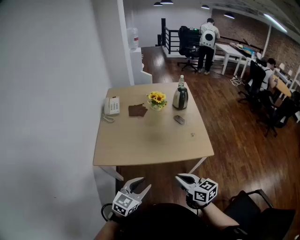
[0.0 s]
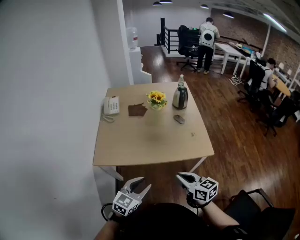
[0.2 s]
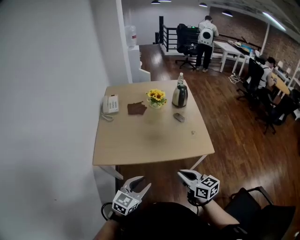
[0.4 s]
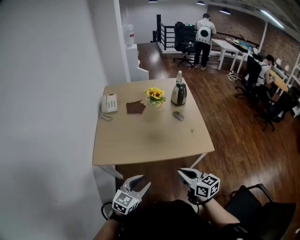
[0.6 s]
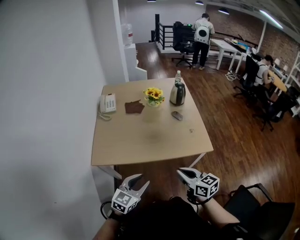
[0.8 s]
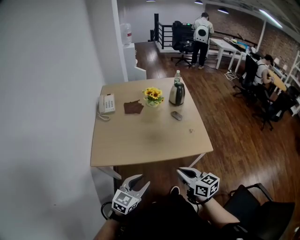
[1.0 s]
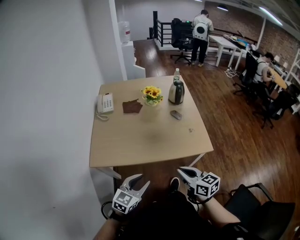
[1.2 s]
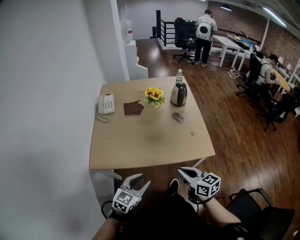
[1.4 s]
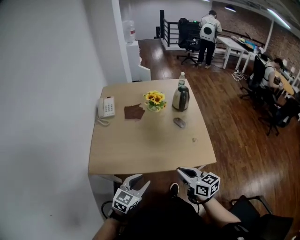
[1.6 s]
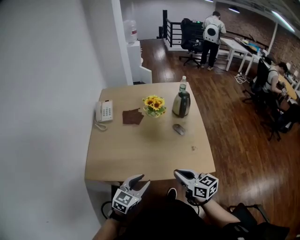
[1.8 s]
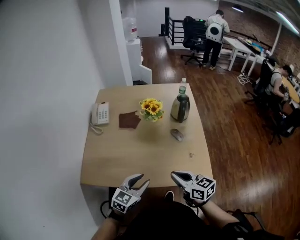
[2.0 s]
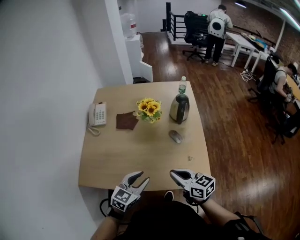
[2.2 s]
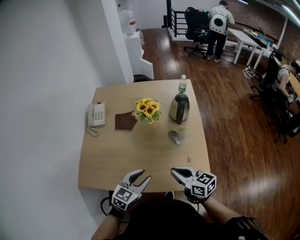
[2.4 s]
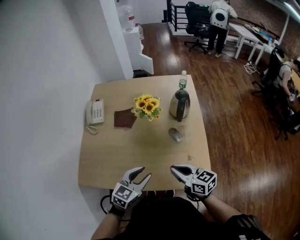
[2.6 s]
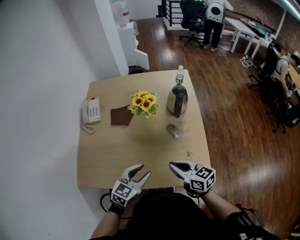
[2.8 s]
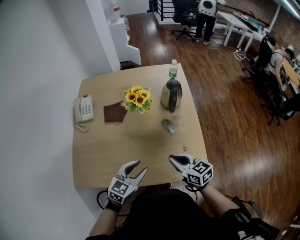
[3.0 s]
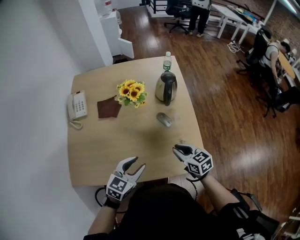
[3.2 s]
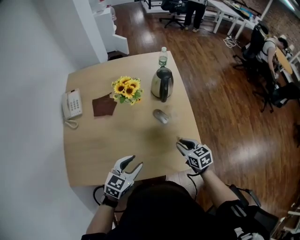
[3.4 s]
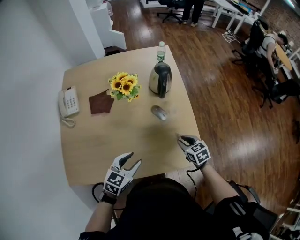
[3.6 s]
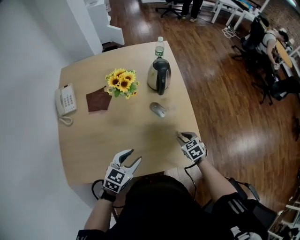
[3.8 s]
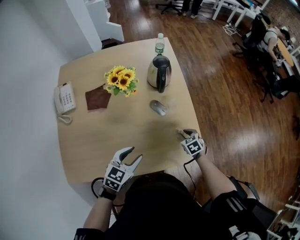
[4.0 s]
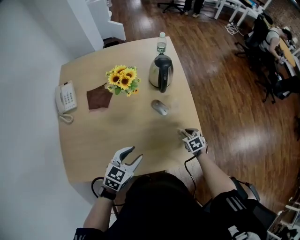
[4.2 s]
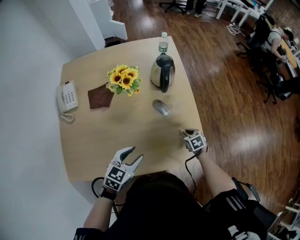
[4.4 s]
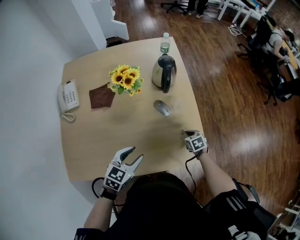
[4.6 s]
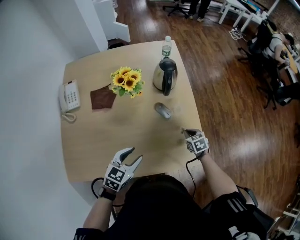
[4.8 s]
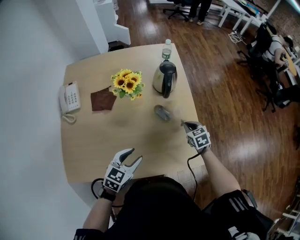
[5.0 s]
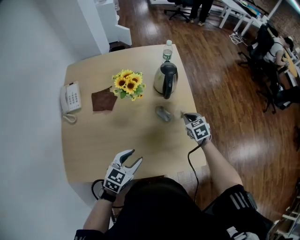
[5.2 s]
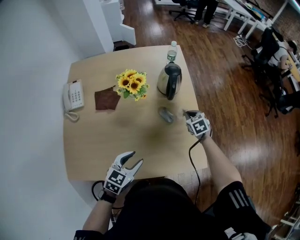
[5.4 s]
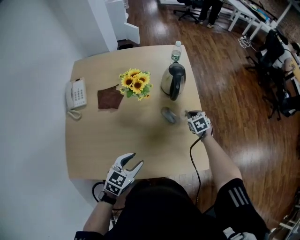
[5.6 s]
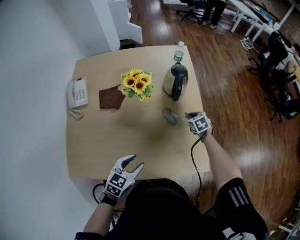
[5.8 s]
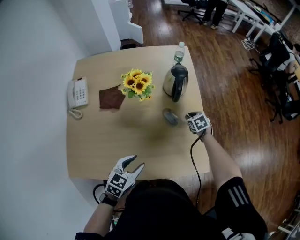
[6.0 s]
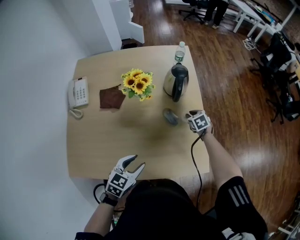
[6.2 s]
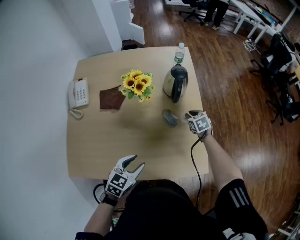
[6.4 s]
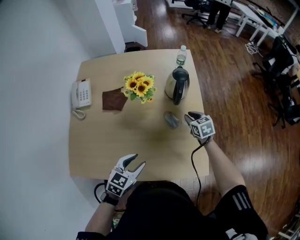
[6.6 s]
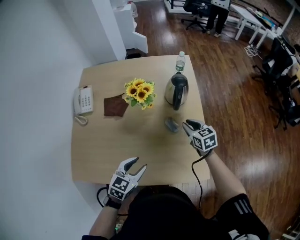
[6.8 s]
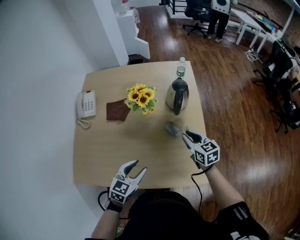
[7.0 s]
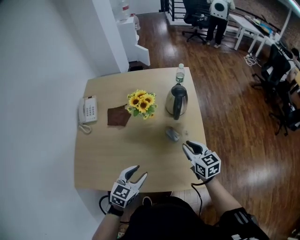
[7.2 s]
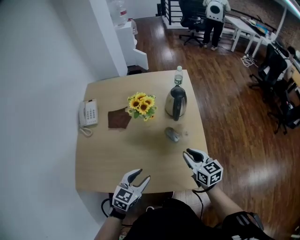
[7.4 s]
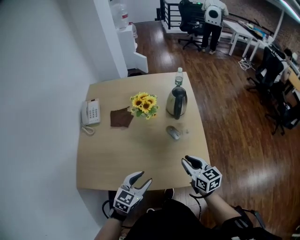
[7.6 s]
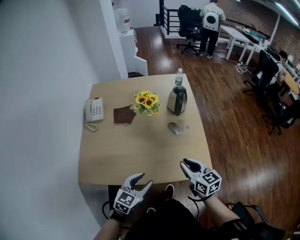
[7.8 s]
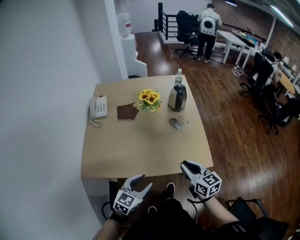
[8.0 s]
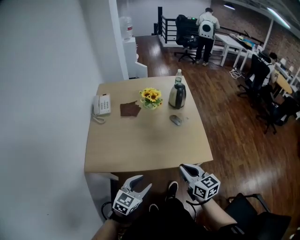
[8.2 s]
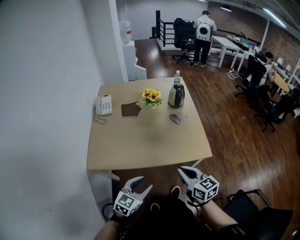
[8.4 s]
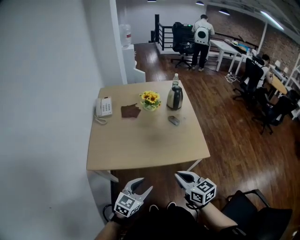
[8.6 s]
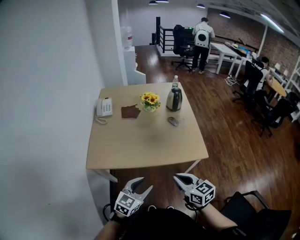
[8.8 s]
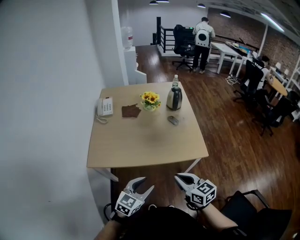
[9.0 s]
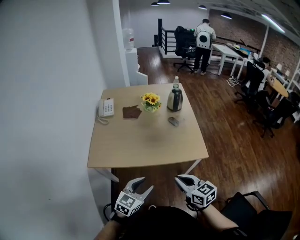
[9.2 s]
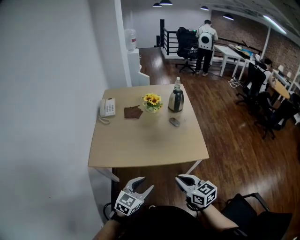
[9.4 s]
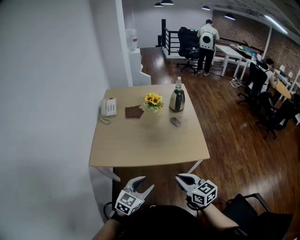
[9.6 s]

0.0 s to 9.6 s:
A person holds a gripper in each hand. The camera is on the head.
0.0 to 1.6 s: Both grippers travel together forward, about 10 cm.
1.6 to 3.2 s: The left gripper goes about 25 cm forward and to the right. The right gripper travels forward, to the right and downward by some 30 cm.
3.2 to 4.8 s: The left gripper goes about 5 cm downward; the right gripper is displaced downward, to the right and forward by some 20 cm, and swivels roughly 30 degrees.
4.8 to 6.4 s: The right gripper shifts approximately 15 cm forward, and opens up.
6.4 to 8.0 s: The right gripper shifts about 40 cm backward and upward, and tilts its fingers some 40 degrees upward. Meanwhile the left gripper is displaced backward by approximately 20 cm.
8.0 to 9.6 s: Both grippers move backward, some 15 cm.

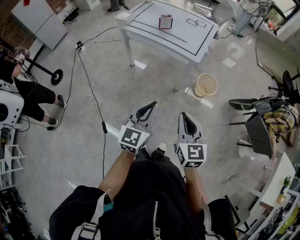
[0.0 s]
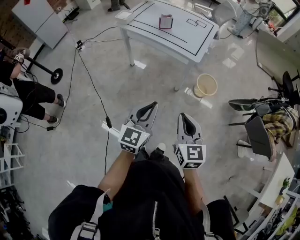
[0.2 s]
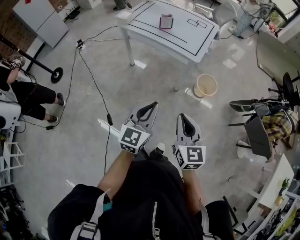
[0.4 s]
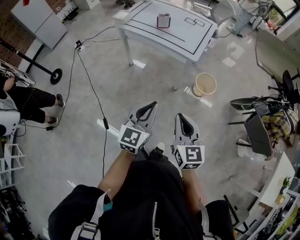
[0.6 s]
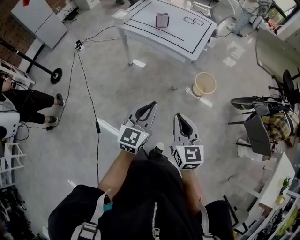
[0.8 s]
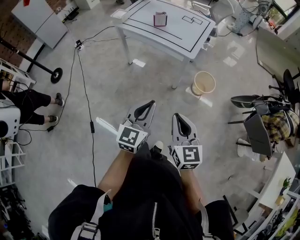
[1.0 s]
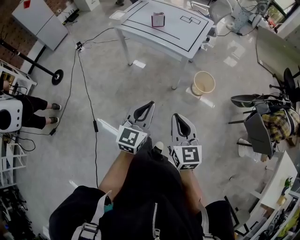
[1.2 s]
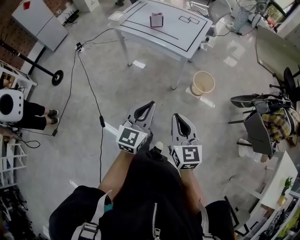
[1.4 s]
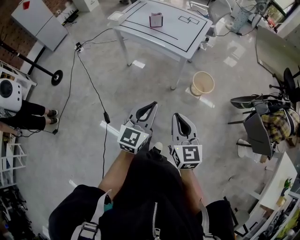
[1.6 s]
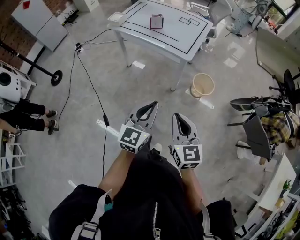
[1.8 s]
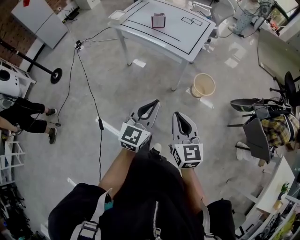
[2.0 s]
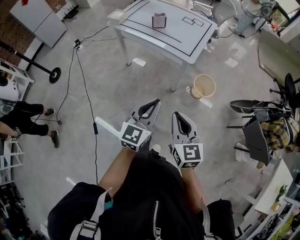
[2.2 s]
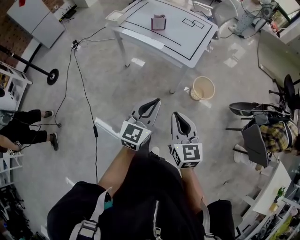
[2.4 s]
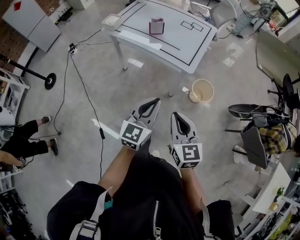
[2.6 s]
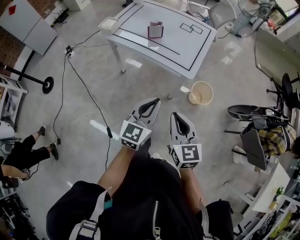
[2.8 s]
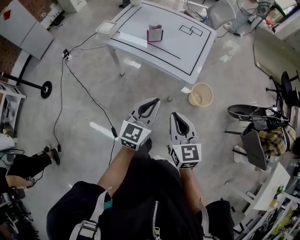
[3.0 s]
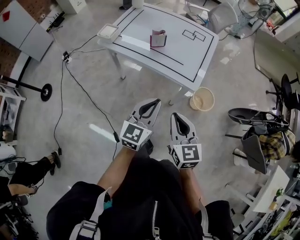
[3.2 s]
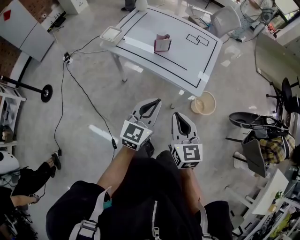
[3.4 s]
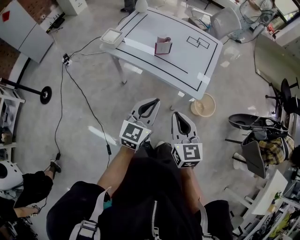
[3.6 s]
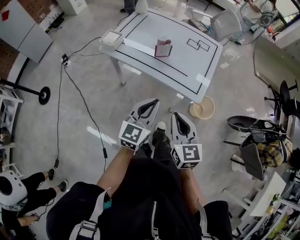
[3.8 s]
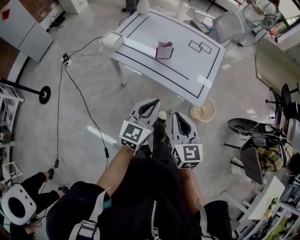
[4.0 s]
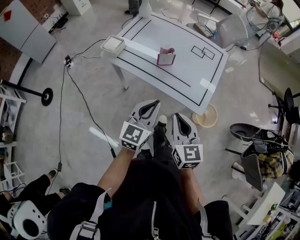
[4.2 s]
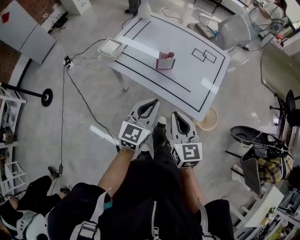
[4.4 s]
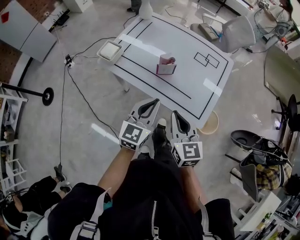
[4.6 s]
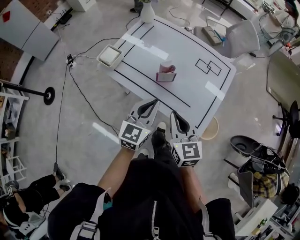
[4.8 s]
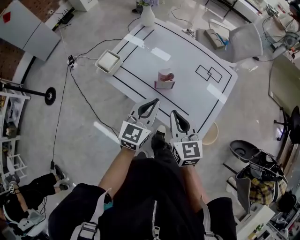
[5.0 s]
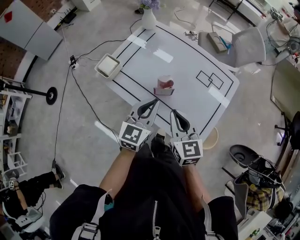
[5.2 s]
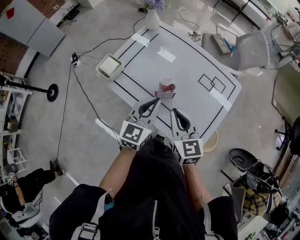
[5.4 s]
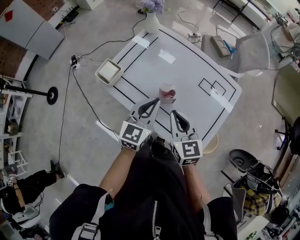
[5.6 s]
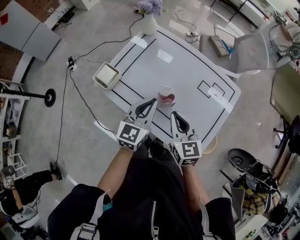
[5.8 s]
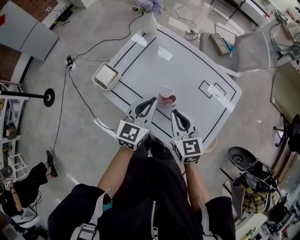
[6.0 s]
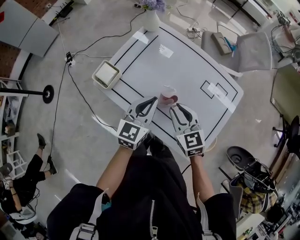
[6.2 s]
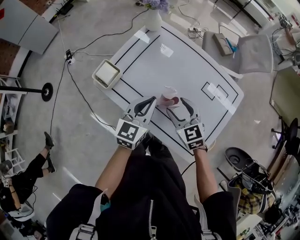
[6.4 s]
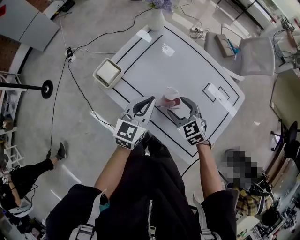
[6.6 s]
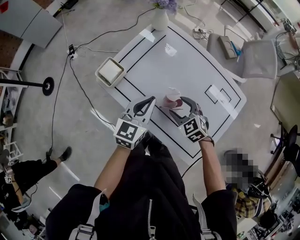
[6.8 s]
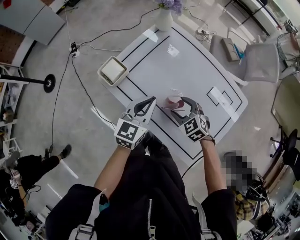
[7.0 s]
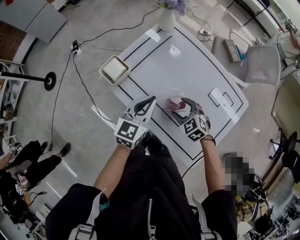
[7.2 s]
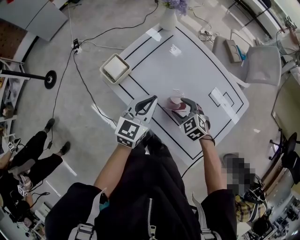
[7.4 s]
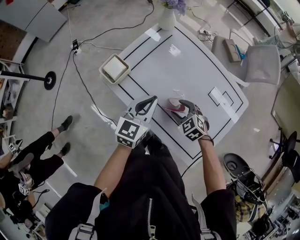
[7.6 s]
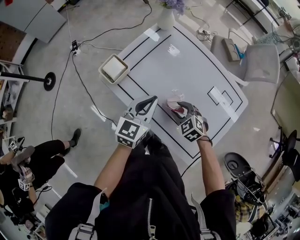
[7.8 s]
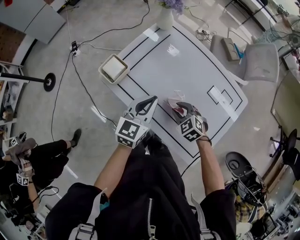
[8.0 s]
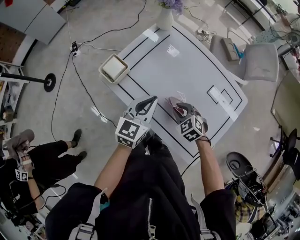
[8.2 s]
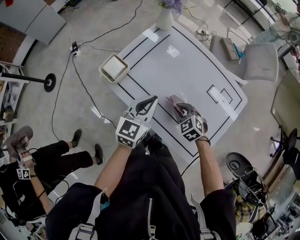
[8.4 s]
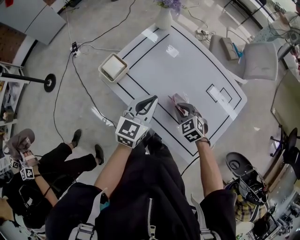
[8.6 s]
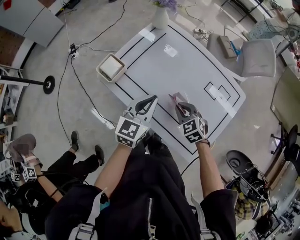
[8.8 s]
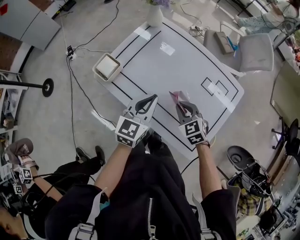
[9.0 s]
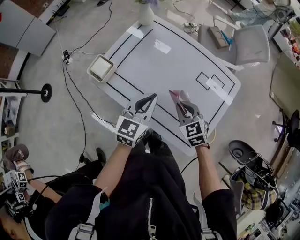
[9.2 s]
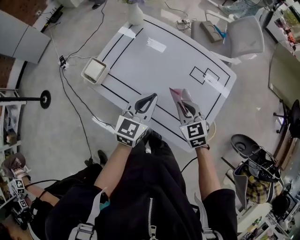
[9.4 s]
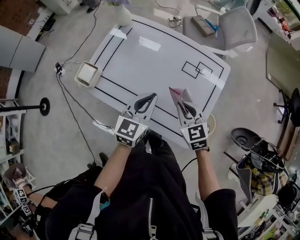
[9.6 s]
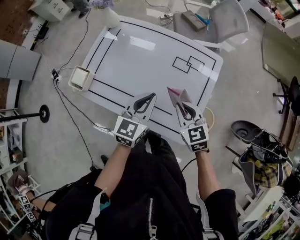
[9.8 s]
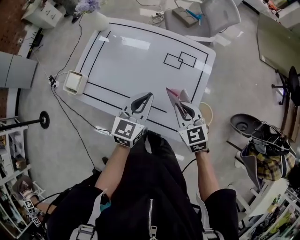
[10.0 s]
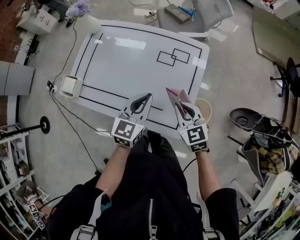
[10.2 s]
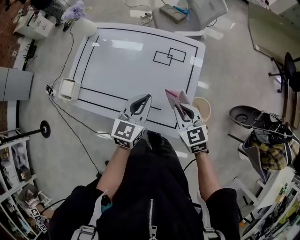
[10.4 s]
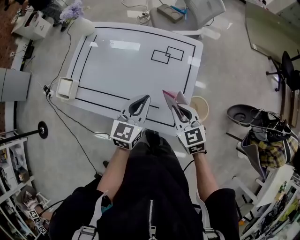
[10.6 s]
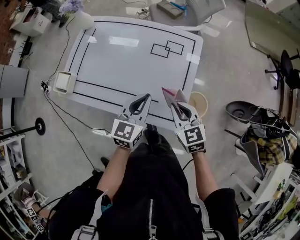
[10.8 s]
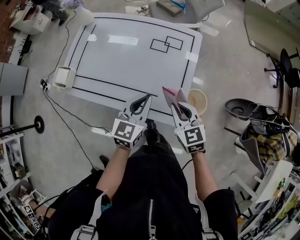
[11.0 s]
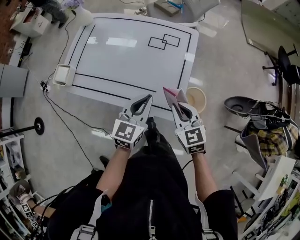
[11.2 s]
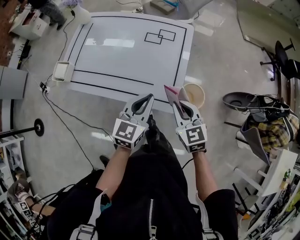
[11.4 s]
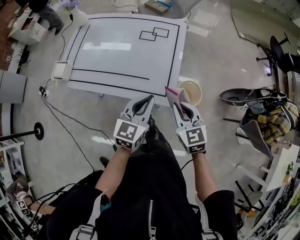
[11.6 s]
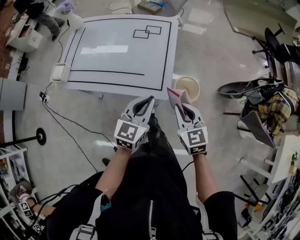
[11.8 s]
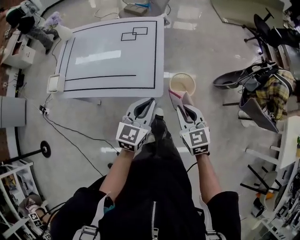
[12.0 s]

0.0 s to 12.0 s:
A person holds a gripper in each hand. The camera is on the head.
0.0 to 1.6 s: Both grippers travel together to the right, about 5 cm.
1.6 to 3.0 s: Both grippers travel together forward, about 25 cm.
3.0 to 4.4 s: The left gripper travels forward and to the left by roughly 20 cm, while the right gripper travels forward by about 20 cm.
4.4 to 6.0 s: The two grippers go roughly 25 cm forward.
6.0 to 7.6 s: The right gripper travels downward by some 15 cm, rotates some 50 degrees, and opens. The left gripper moves roughly 5 cm.
7.6 to 9.0 s: The right gripper is displaced upward by about 5 cm, and closes up, while the left gripper shifts by some 5 cm.
9.0 to 10.4 s: The right gripper goes approximately 25 cm to the right and backward, and swivels roughly 30 degrees; the left gripper is displaced to the right by roughly 20 cm.
10.4 to 12.0 s: The two grippers go roughly 30 cm backward and to the right.

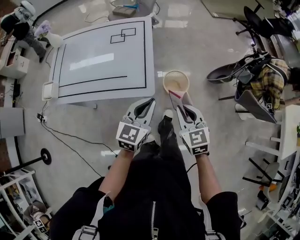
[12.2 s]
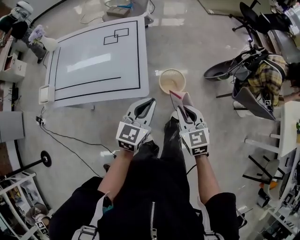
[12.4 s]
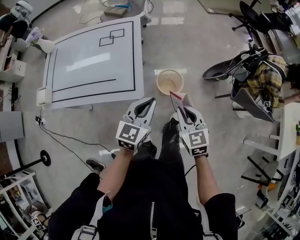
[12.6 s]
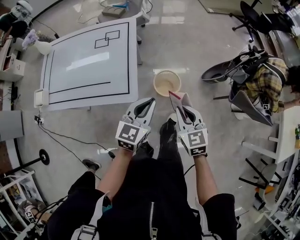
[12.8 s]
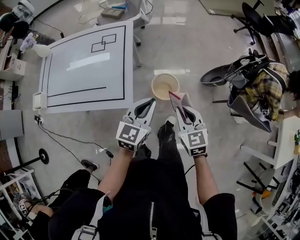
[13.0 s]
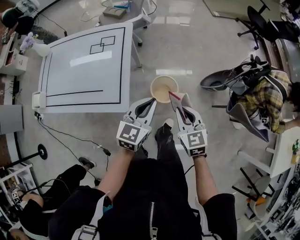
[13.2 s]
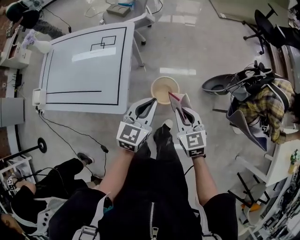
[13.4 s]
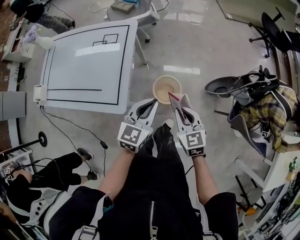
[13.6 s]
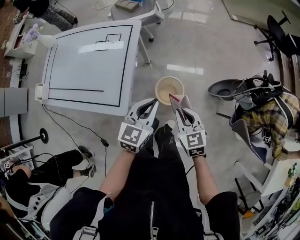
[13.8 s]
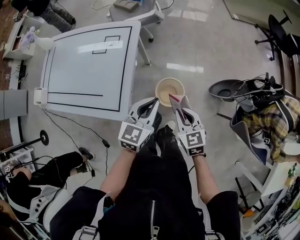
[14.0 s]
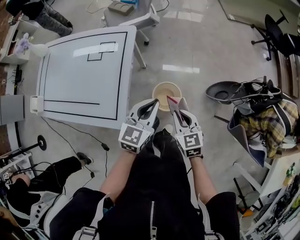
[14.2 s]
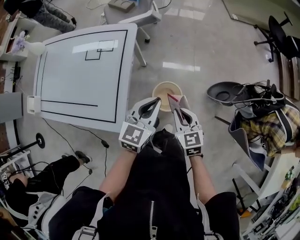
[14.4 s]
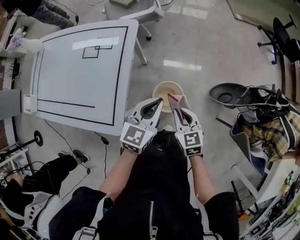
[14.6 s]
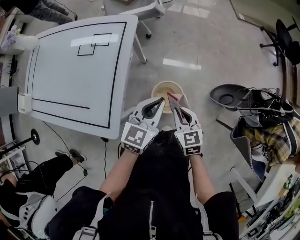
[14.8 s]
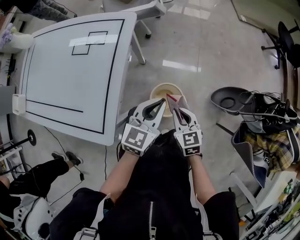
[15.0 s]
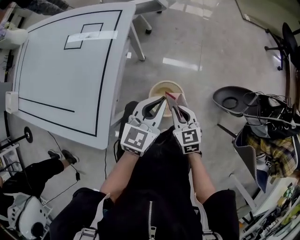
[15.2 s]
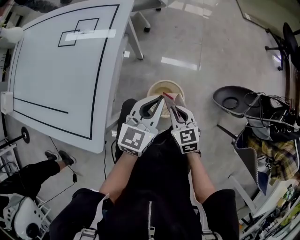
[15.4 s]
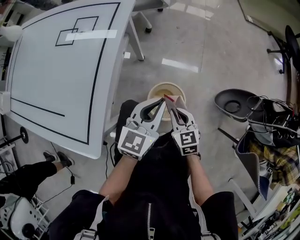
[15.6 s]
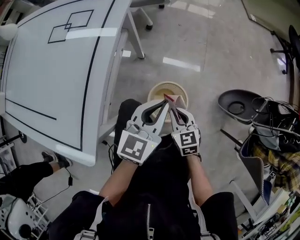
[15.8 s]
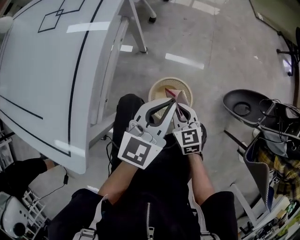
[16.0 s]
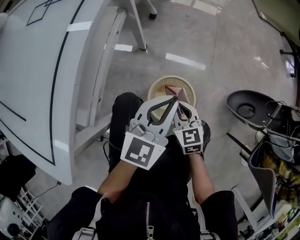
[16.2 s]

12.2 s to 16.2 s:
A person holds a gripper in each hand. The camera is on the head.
12.2 to 13.6 s: The right gripper travels forward and to the right by about 25 cm, while the left gripper goes approximately 25 cm to the right and forward.
13.6 to 14.8 s: The right gripper moves downward and forward, approximately 20 cm, while the left gripper moves forward and downward, roughly 20 cm.
14.8 to 16.2 s: The grippers both shift downward by some 25 cm.
